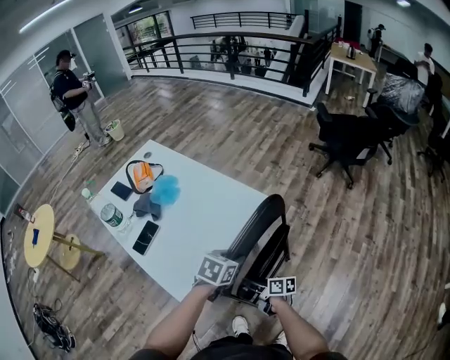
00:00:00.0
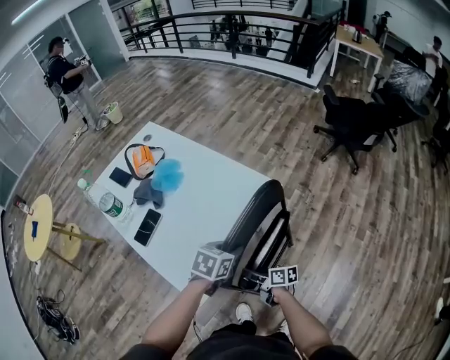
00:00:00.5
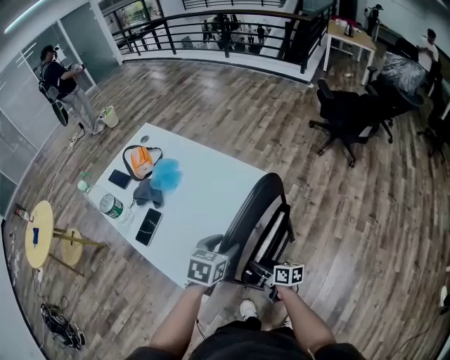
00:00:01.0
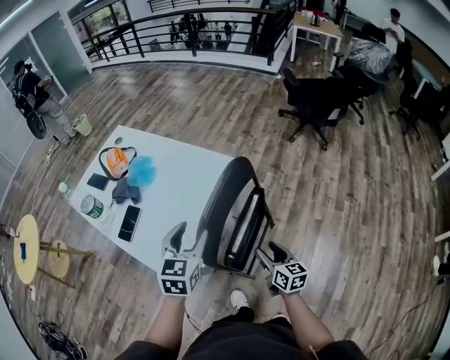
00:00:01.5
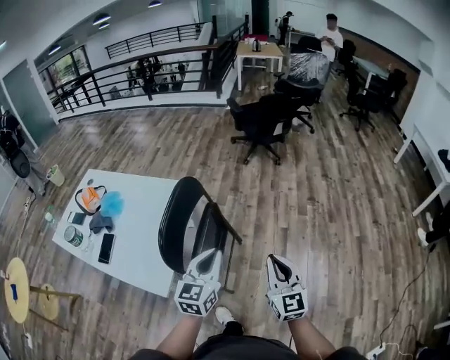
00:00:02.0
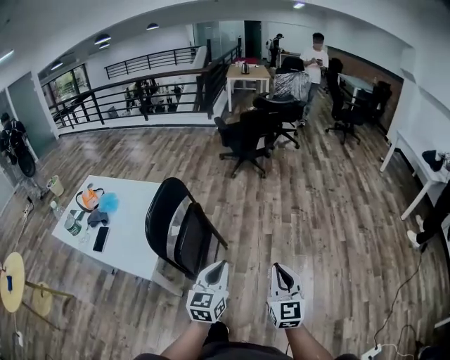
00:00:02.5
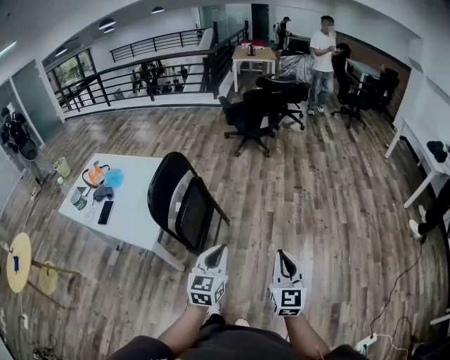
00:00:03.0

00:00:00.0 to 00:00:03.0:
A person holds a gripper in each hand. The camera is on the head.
00:00:00.0 to 00:00:01.5: The right gripper heads upward and to the right, covering roughly 15 cm, and turns by roughly 40 degrees. Meanwhile the left gripper moves upward and to the left, approximately 15 cm, swivels approximately 30 degrees, and opens its fingers.
00:00:01.5 to 00:00:03.0: The two grippers travel together, roughly 50 cm. The left gripper rotates approximately 30 degrees, and closes; the right gripper swivels about 50 degrees, and closes.

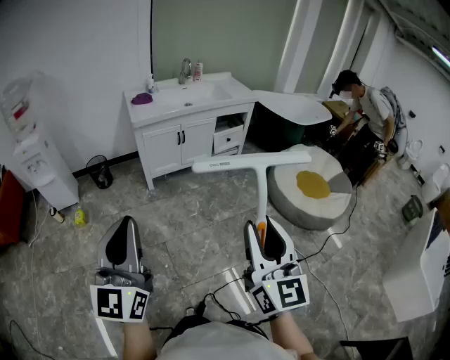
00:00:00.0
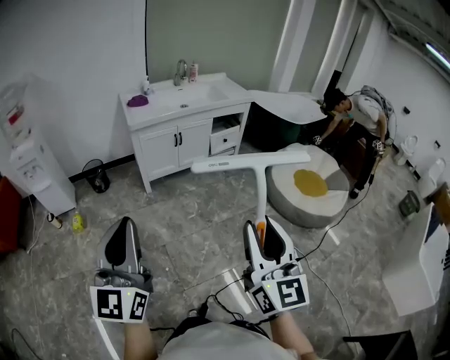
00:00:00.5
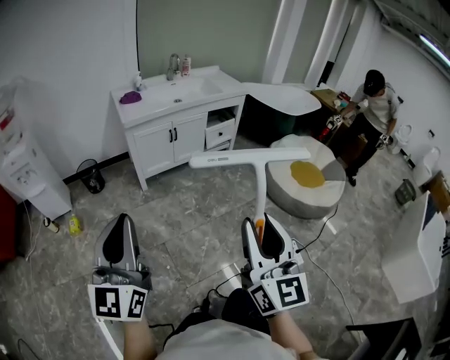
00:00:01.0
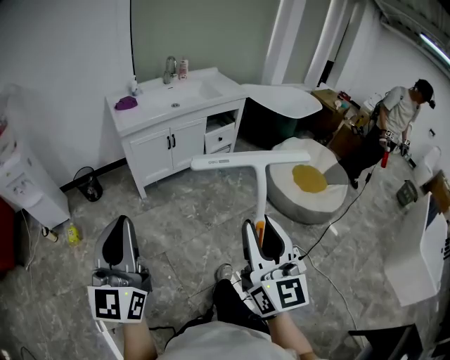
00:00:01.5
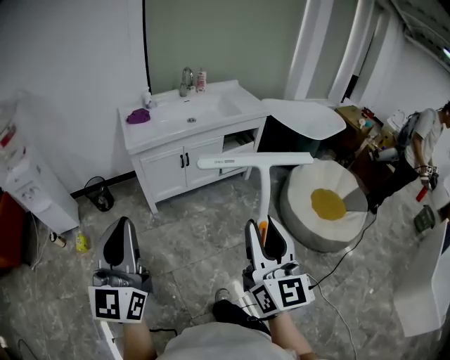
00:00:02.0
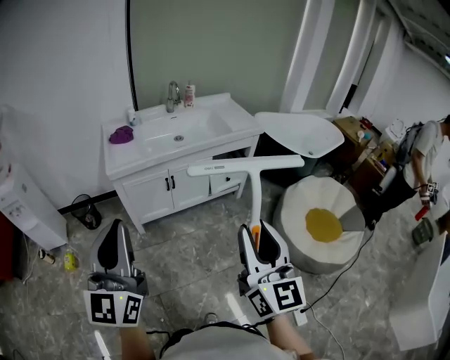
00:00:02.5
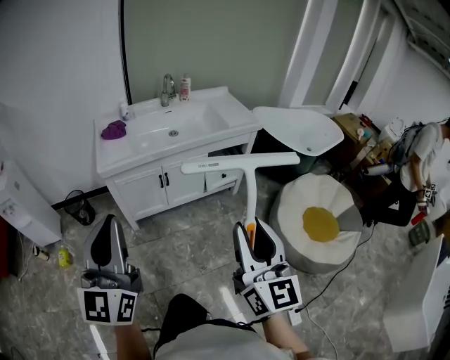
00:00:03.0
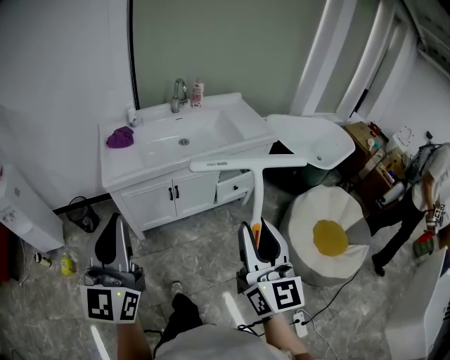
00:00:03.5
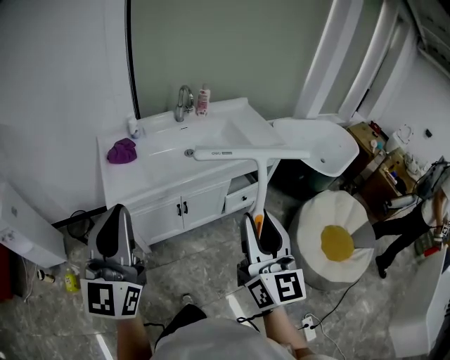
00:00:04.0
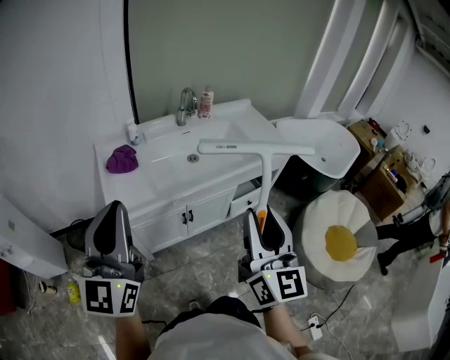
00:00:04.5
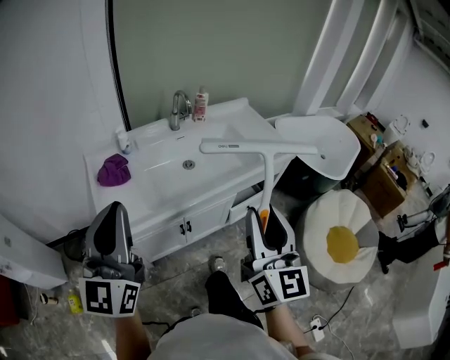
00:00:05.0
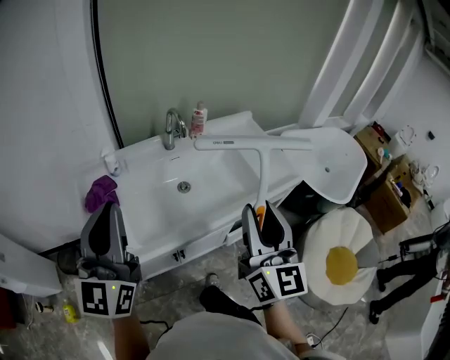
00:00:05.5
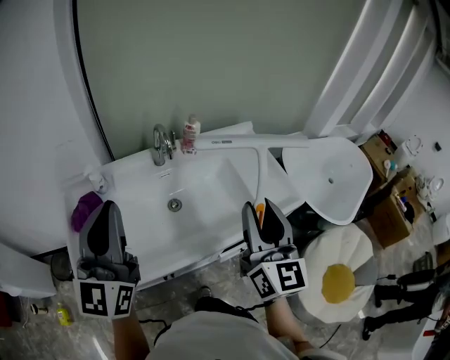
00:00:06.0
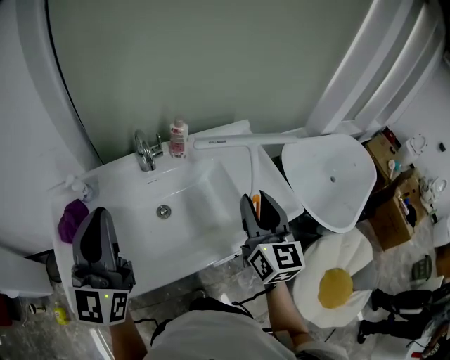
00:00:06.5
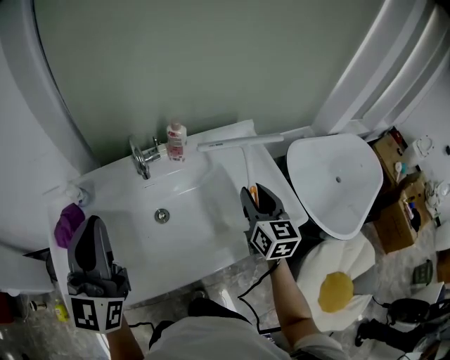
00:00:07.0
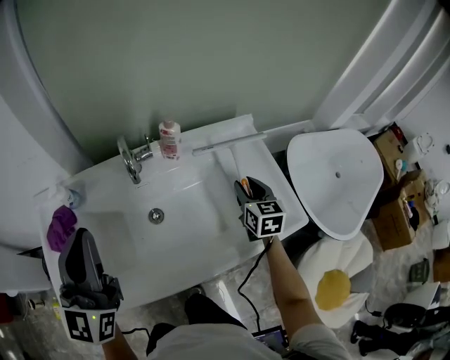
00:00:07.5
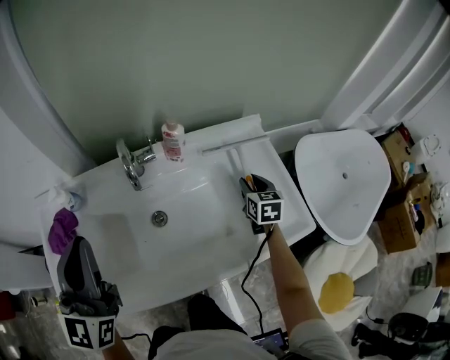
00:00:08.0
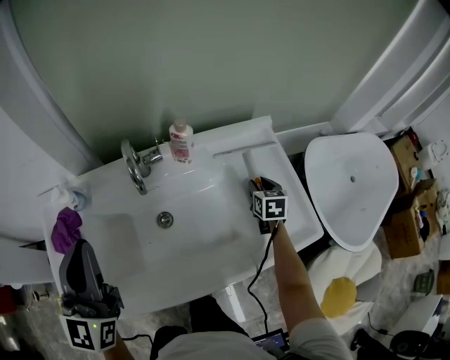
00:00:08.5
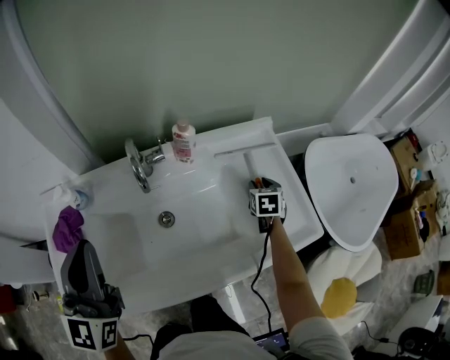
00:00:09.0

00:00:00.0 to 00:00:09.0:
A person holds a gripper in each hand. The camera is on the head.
00:00:00.0 to 00:00:02.0: The grippers both shift forward by approximately 25 cm.
00:00:02.0 to 00:00:04.5: The two grippers travel together, forward, approximately 50 cm.
00:00:04.5 to 00:00:07.0: Both grippers are carried forward, some 50 cm. The right gripper rotates roughly 30 degrees.
00:00:07.0 to 00:00:09.0: The right gripper shifts some 25 cm downward and forward, and angles its fingers downward, by some 30 degrees. Meanwhile the left gripper shifts by about 5 cm.

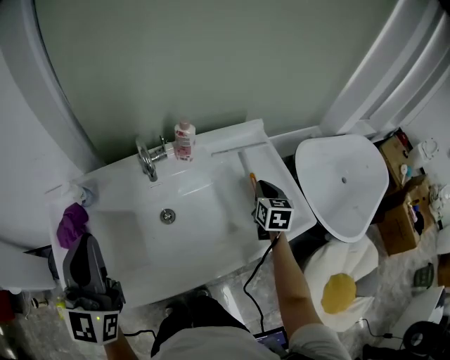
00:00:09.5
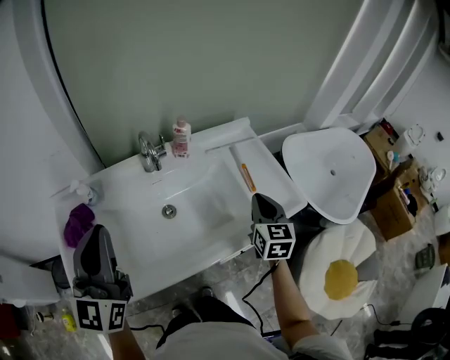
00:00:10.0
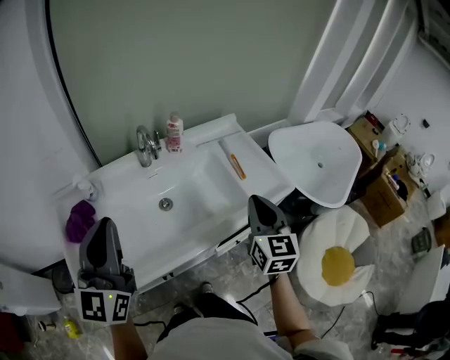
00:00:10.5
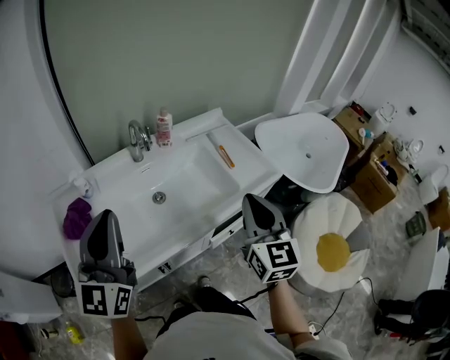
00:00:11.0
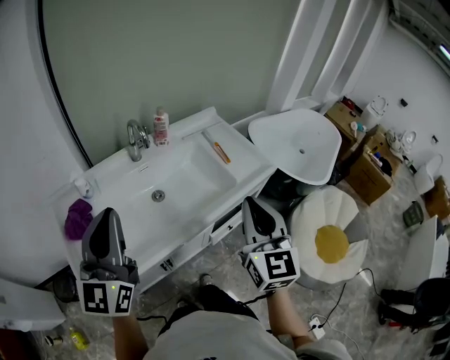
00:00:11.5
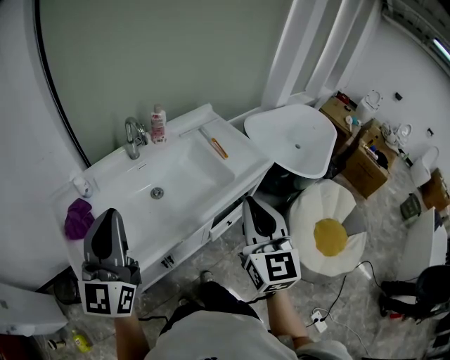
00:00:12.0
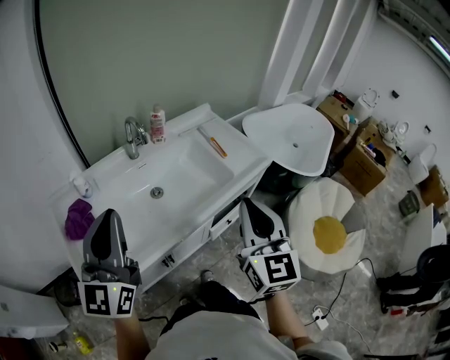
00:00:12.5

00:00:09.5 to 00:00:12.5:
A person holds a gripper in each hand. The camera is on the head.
00:00:09.5 to 00:00:11.0: The left gripper is displaced backward by roughly 10 cm. The right gripper travels backward and upward by roughly 40 cm, and rotates approximately 30 degrees.
00:00:11.0 to 00:00:12.5: The right gripper shifts about 10 cm backward.

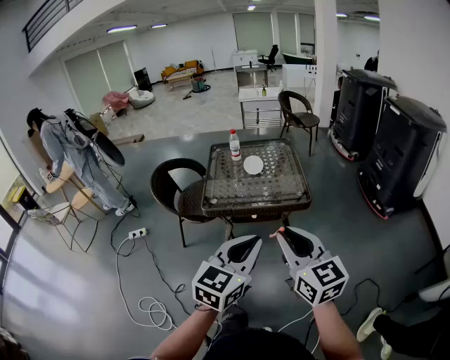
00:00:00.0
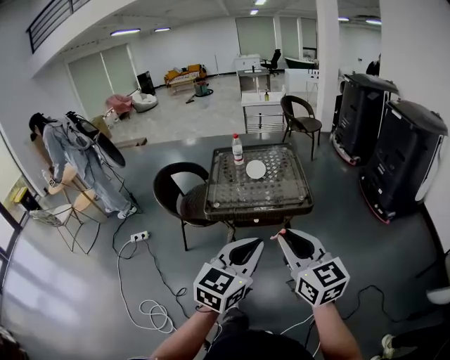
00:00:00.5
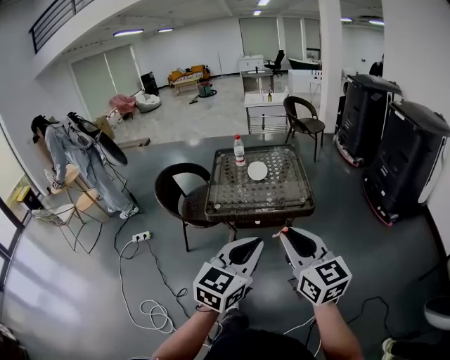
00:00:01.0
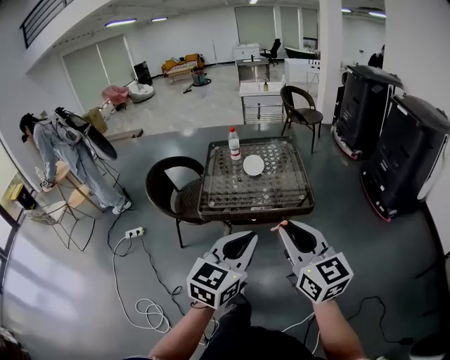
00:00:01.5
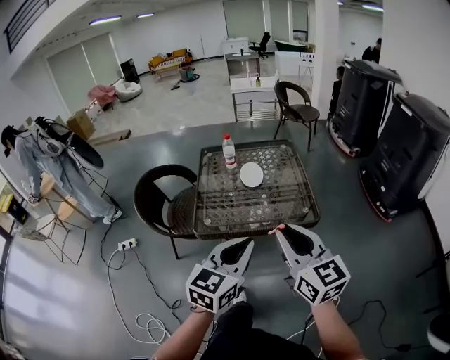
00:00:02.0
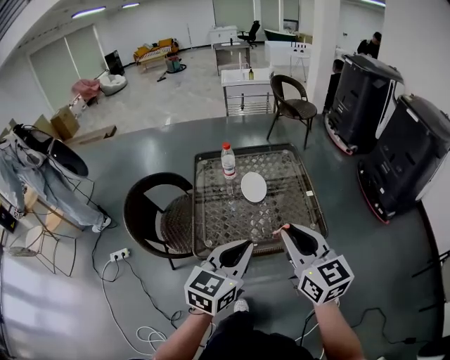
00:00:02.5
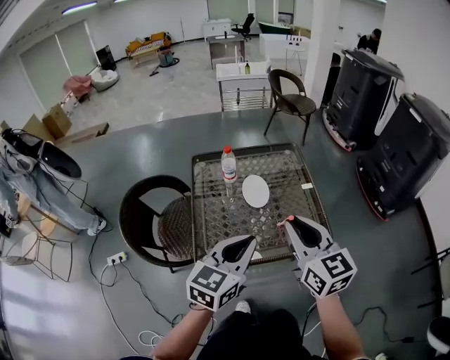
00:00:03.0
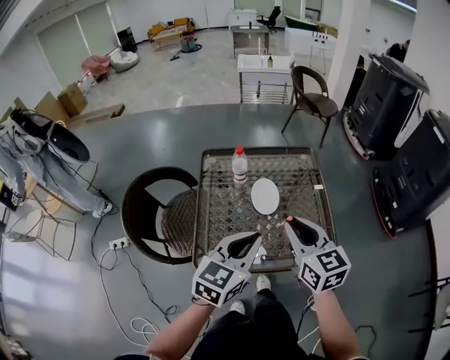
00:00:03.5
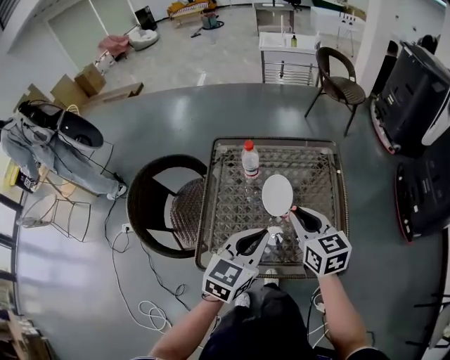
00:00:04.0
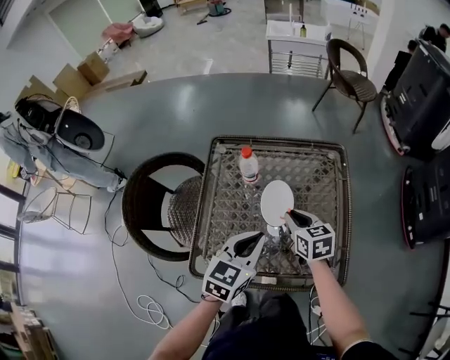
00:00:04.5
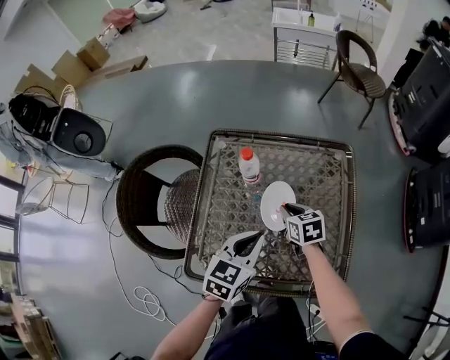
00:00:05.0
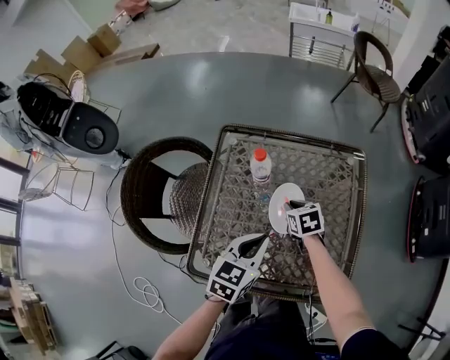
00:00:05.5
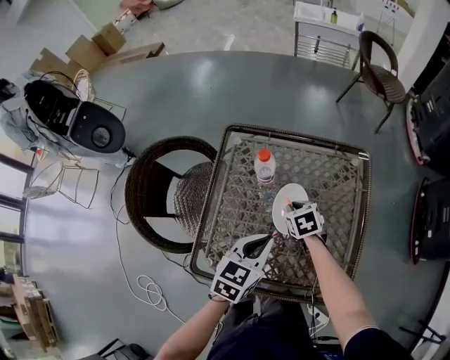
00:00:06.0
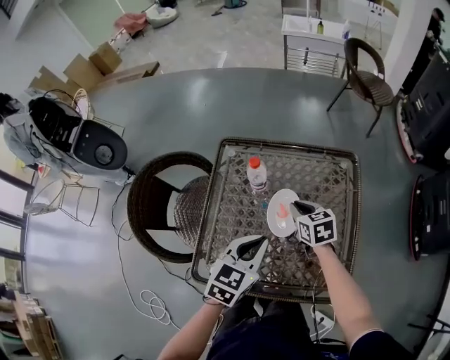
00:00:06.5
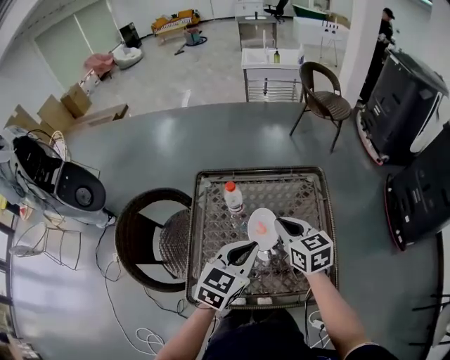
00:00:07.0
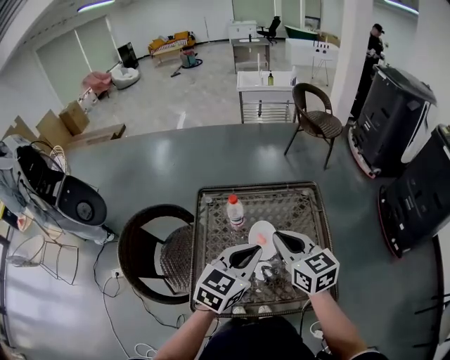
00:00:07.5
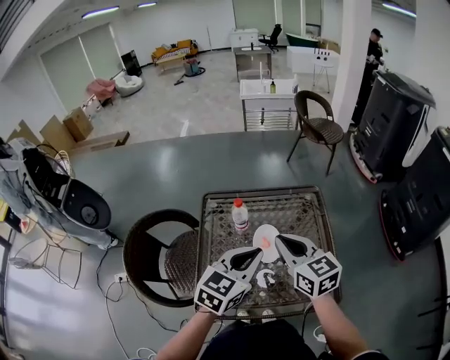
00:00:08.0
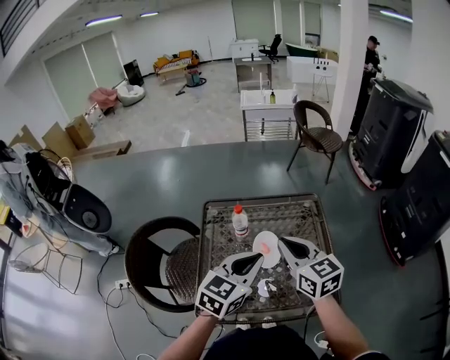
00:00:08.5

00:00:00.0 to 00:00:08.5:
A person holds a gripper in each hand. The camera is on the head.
00:00:00.0 to 00:00:02.0: Both grippers move forward, roughly 15 cm.
00:00:02.0 to 00:00:04.0: The right gripper travels forward and downward by approximately 35 cm, and swivels some 20 degrees. Meanwhile the left gripper heads forward, covering roughly 30 cm.
00:00:04.0 to 00:00:06.5: The right gripper travels downward and forward by roughly 20 cm, and rotates approximately 20 degrees; the left gripper shifts some 10 cm forward and downward.
00:00:06.5 to 00:00:08.5: The left gripper travels upward by about 15 cm, and rotates about 20 degrees. The right gripper is displaced upward and backward by some 25 cm, and turns by approximately 30 degrees.

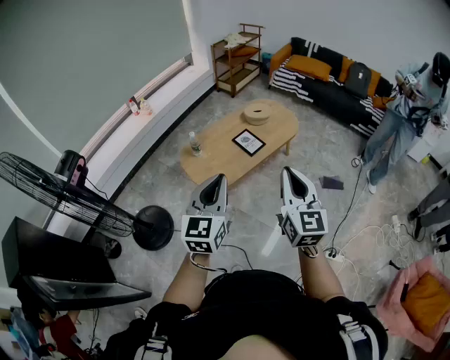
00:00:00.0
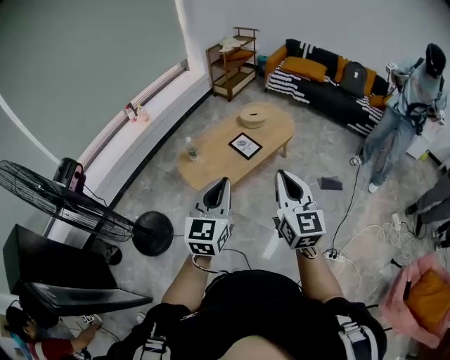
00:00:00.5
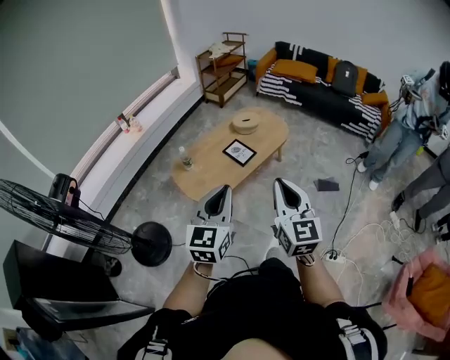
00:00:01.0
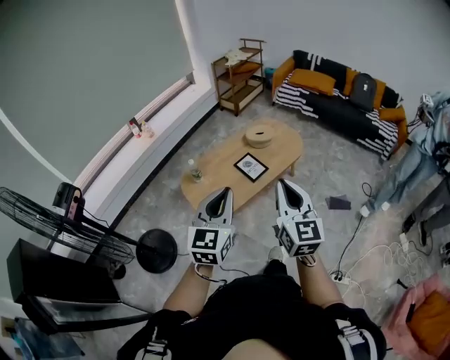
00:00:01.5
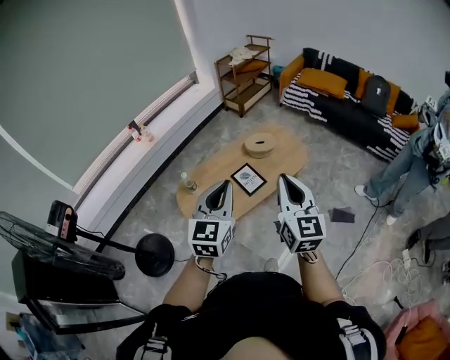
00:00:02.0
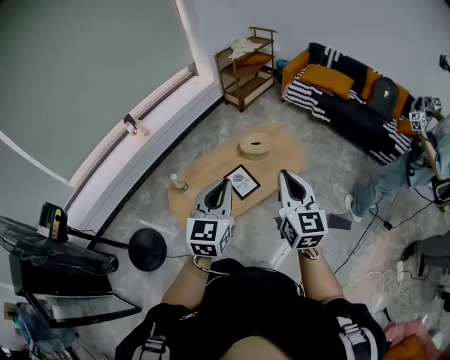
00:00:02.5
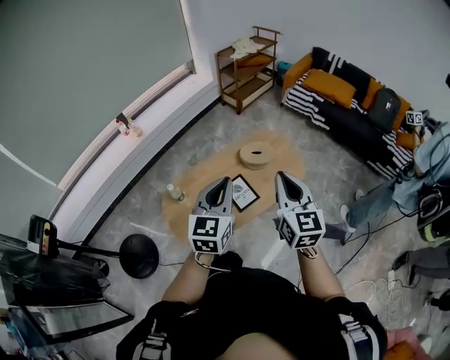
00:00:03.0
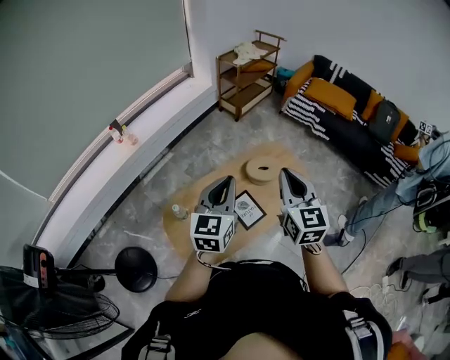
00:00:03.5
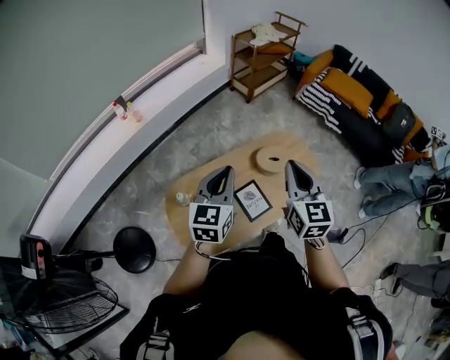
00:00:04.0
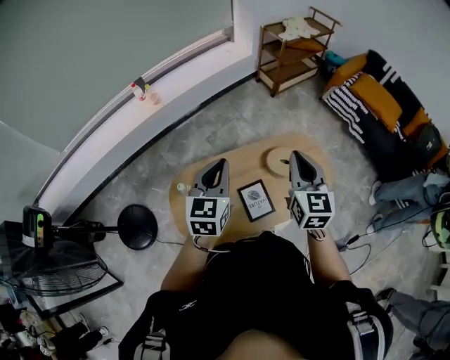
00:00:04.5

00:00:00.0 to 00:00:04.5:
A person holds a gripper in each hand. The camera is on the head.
00:00:00.0 to 00:00:02.0: The right gripper goes approximately 25 cm forward. The left gripper goes some 30 cm forward and to the right.
00:00:02.0 to 00:00:04.5: Both grippers are carried forward, about 50 cm. The left gripper swivels roughly 20 degrees.
